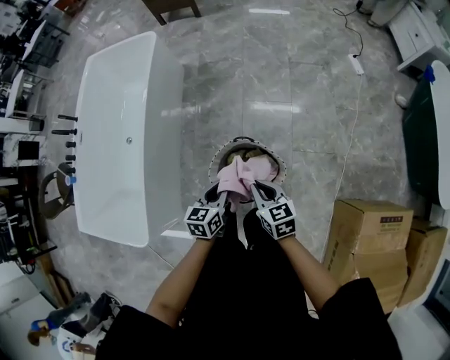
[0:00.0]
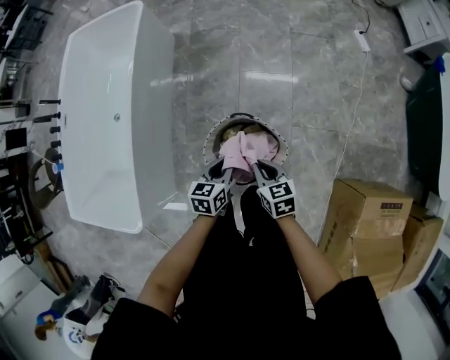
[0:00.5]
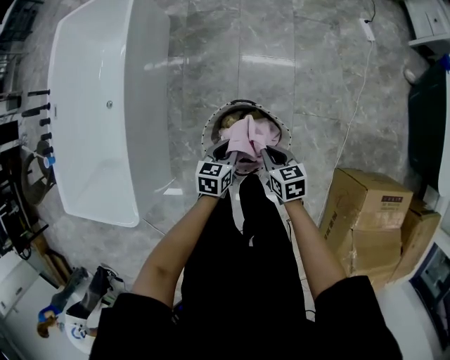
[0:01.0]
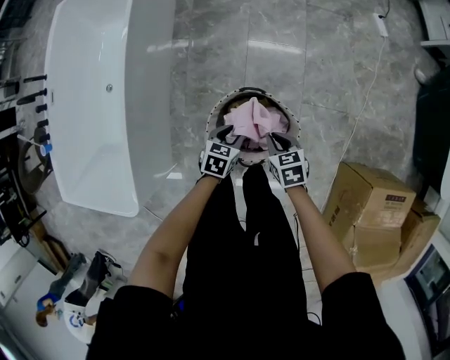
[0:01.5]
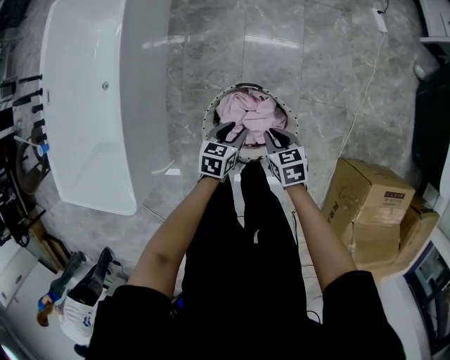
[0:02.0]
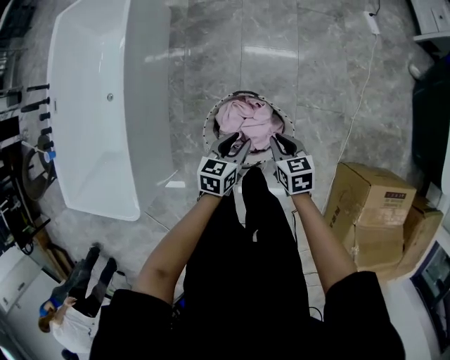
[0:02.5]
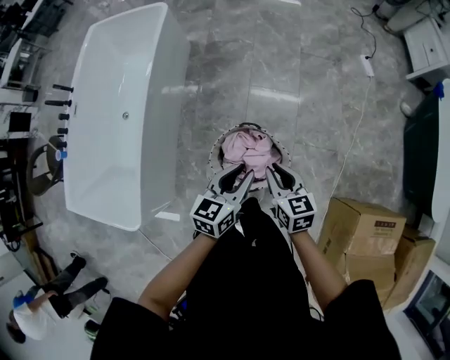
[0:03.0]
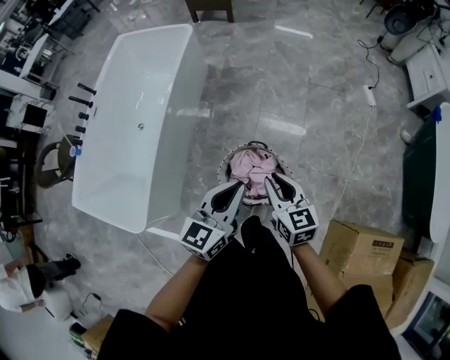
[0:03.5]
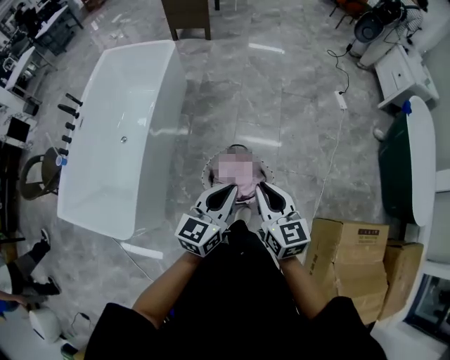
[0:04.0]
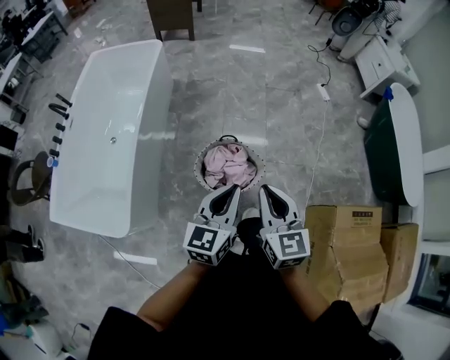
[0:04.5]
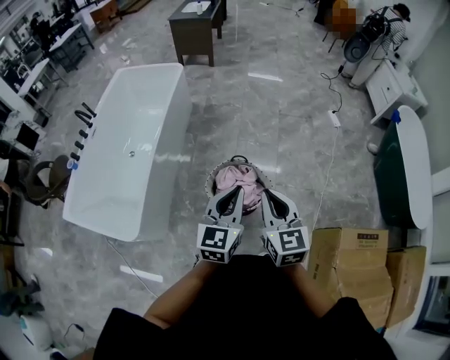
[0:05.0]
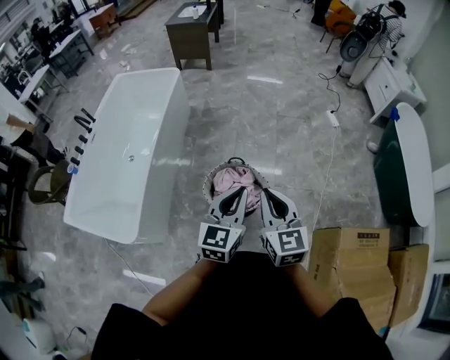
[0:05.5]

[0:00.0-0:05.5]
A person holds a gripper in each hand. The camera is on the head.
0:00.0 to 0:02.0: The grippers both shift downward by some 20 cm. The left gripper opens its fingers.
0:02.0 to 0:03.5: The grippers both shift upward by roughly 35 cm. The left gripper tips its fingers upward by about 30 degrees, and closes its fingers. Meanwhile the right gripper tilts its fingers about 30 degrees upward.
0:03.5 to 0:05.5: The two grippers go roughly 25 cm backward and upward. The right gripper changes its angle by some 20 degrees.

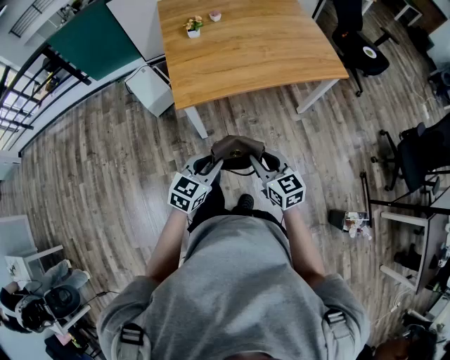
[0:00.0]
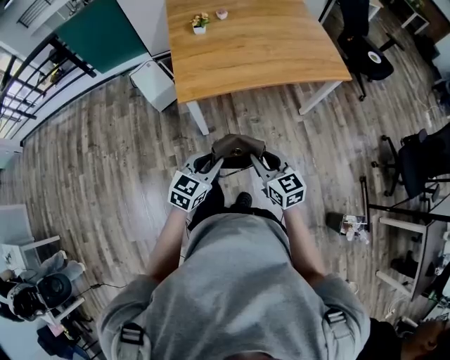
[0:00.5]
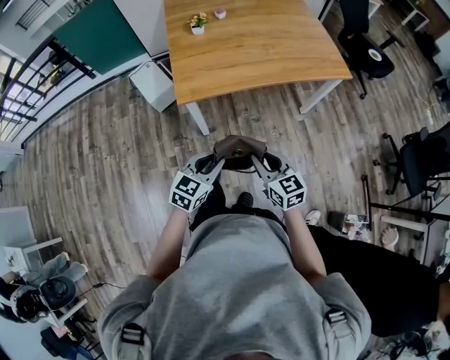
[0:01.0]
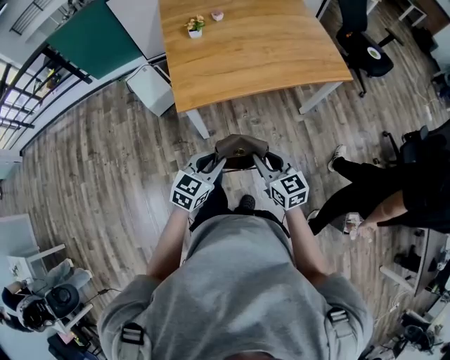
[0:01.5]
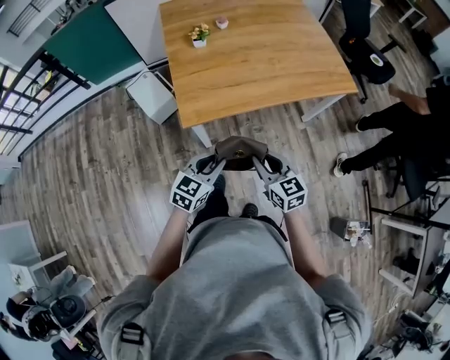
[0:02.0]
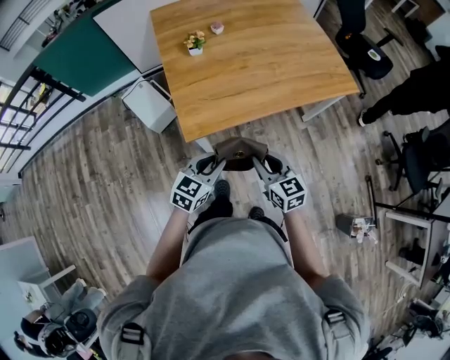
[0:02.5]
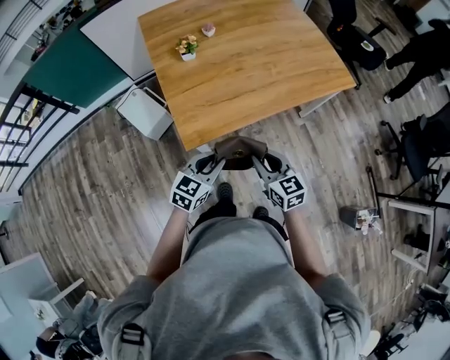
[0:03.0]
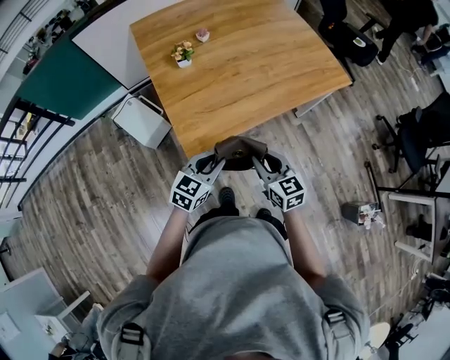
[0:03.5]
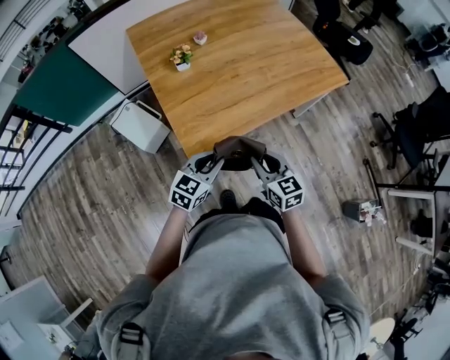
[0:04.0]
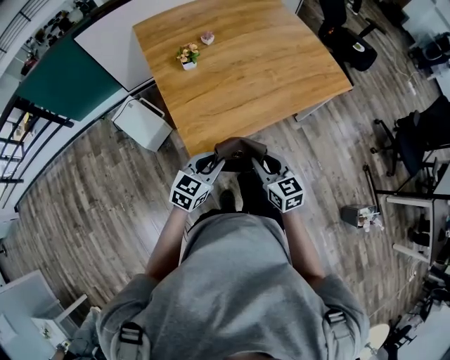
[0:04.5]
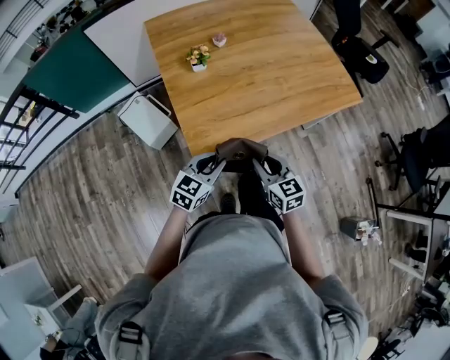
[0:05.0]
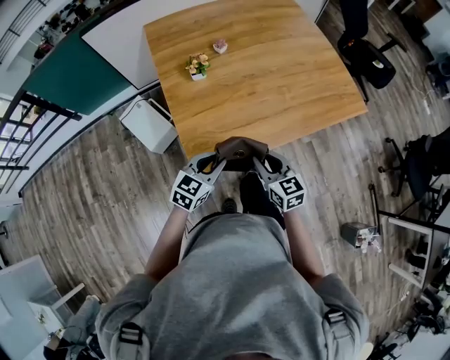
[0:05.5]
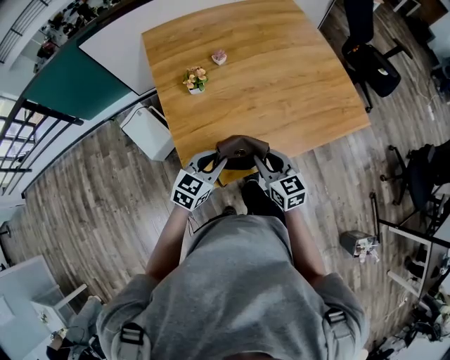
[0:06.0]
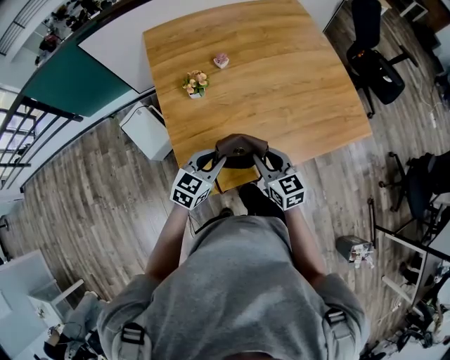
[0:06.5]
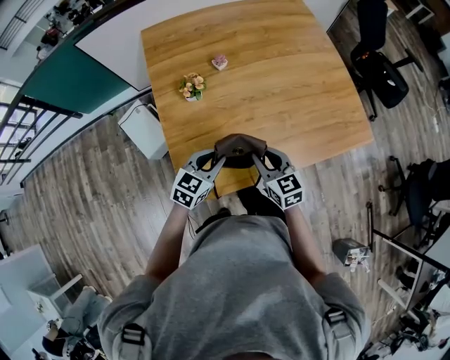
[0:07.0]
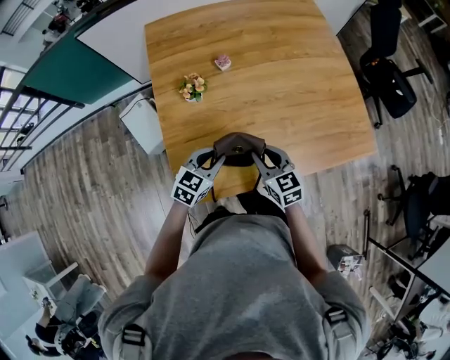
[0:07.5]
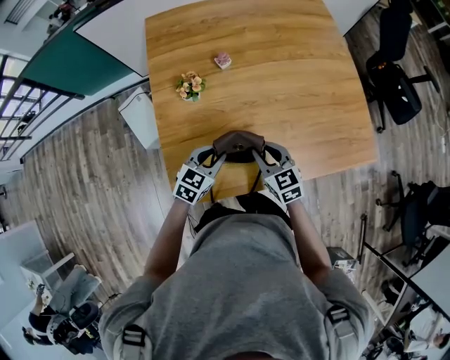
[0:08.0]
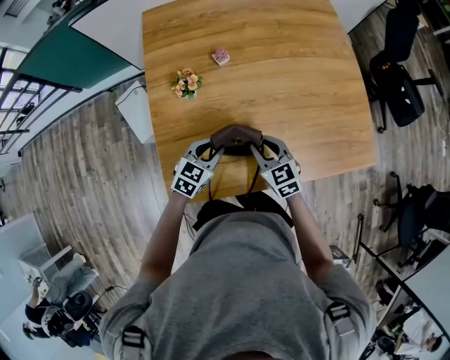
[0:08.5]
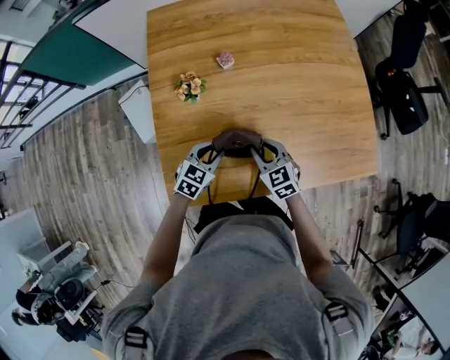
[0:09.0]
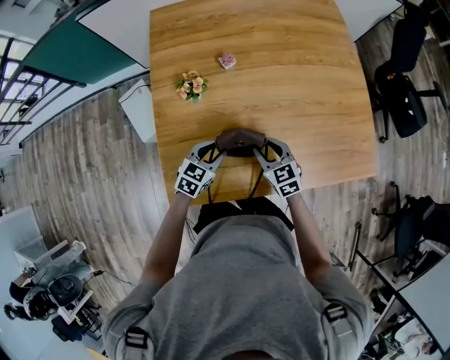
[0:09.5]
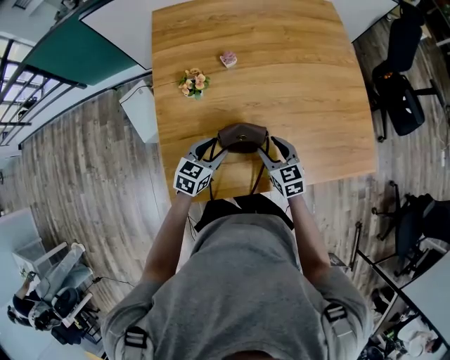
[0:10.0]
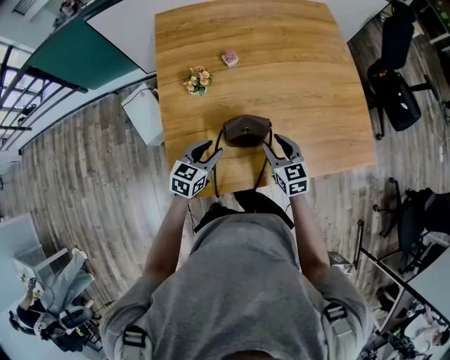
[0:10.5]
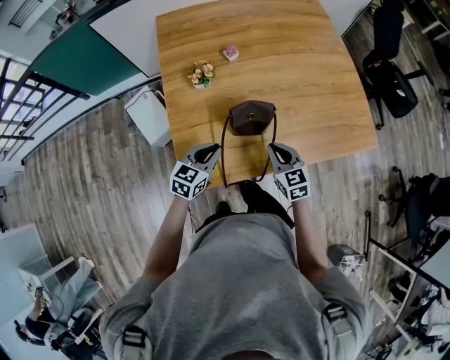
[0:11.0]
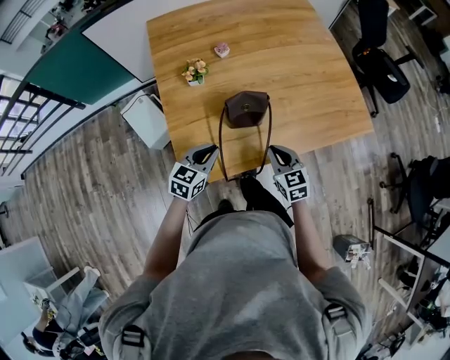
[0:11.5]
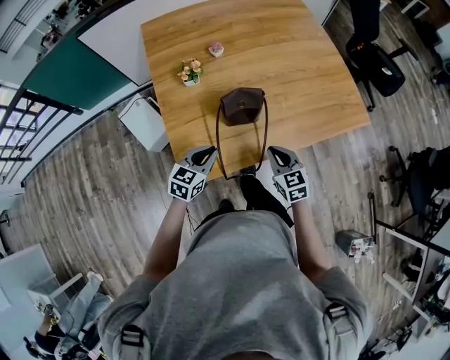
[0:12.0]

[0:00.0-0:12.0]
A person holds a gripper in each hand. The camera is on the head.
0:00.0 to 0:02.0: The two grippers go approximately 10 cm forward.
0:02.0 to 0:04.0: The two grippers go some 15 cm forward and to the left.
0:04.0 to 0:06.0: Both grippers travel together forward, roughly 20 cm.
0:06.0 to 0:08.0: The left gripper shifts about 15 cm forward and downward; the right gripper goes about 15 cm forward.
0:08.0 to 0:10.0: The right gripper goes about 5 cm downward, and opens. Meanwhile the left gripper opens.
0:10.0 to 0:12.0: Both grippers travel together backward, approximately 15 cm. The right gripper closes its fingers. Meanwhile the left gripper closes its fingers.

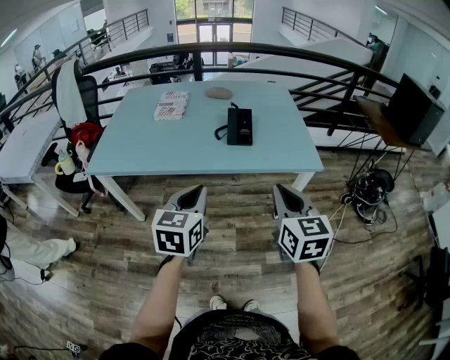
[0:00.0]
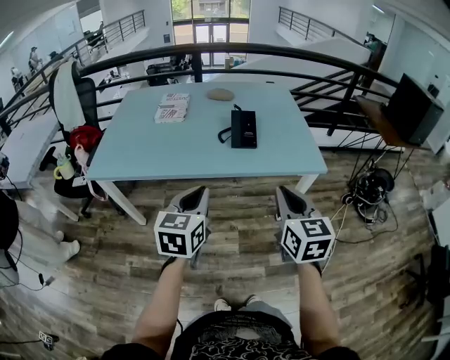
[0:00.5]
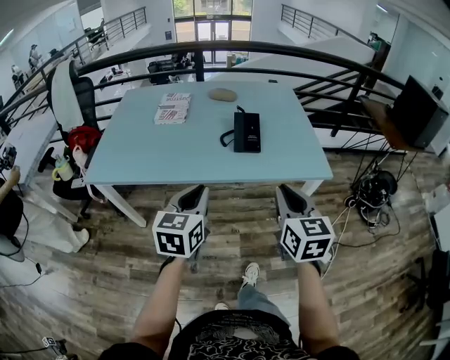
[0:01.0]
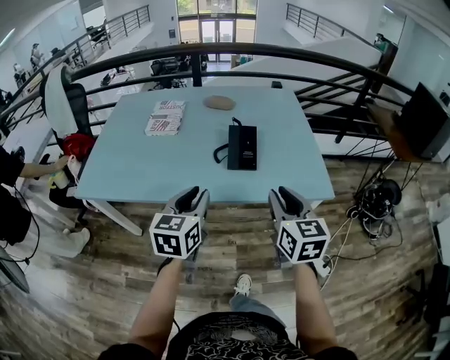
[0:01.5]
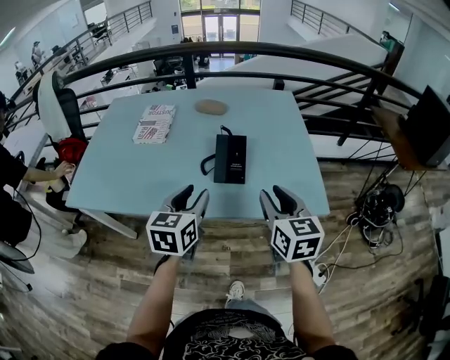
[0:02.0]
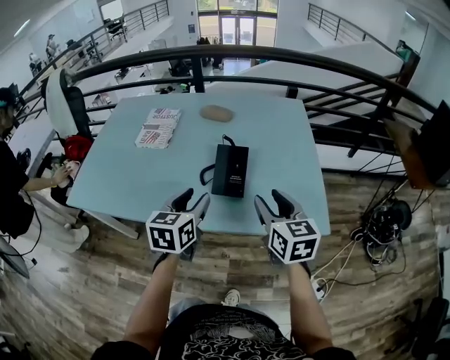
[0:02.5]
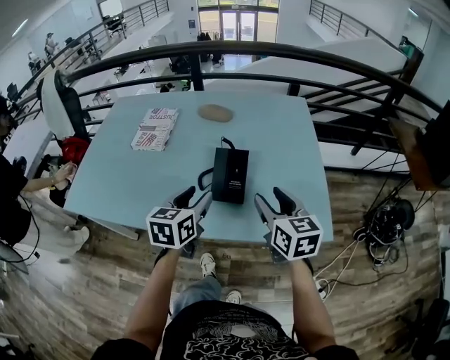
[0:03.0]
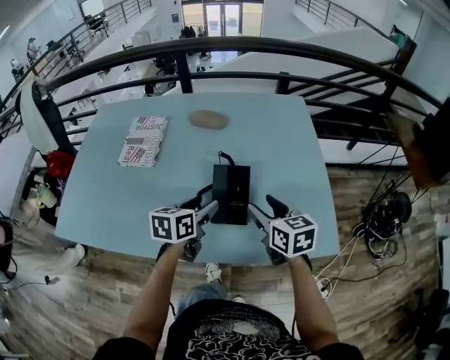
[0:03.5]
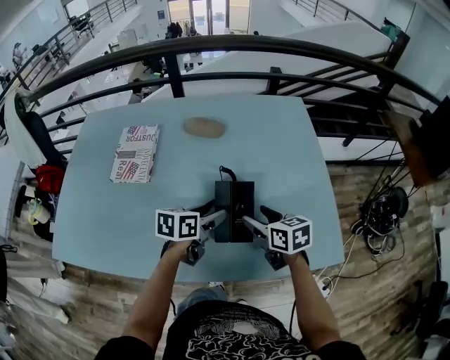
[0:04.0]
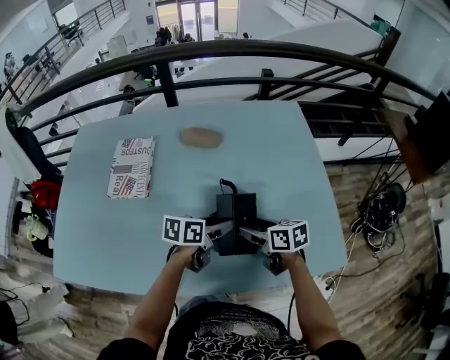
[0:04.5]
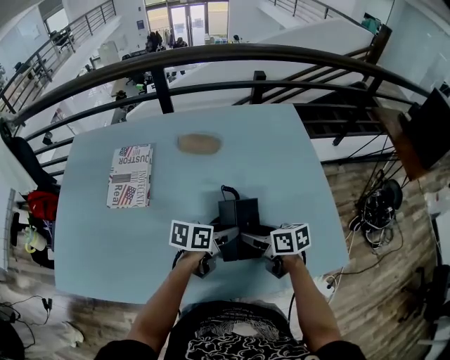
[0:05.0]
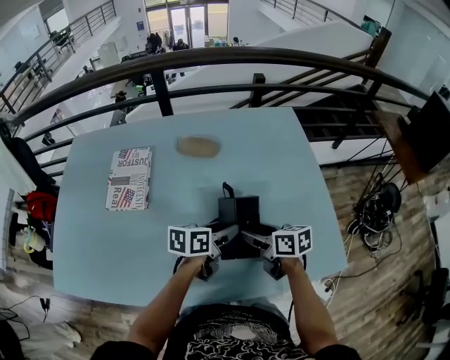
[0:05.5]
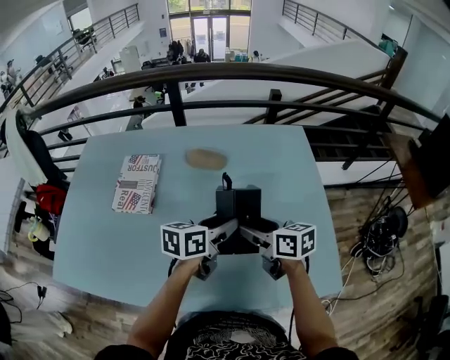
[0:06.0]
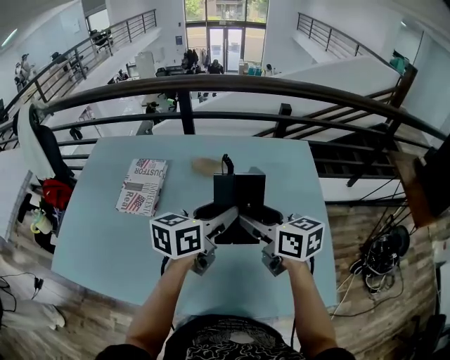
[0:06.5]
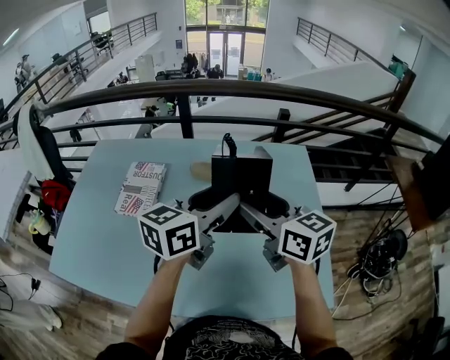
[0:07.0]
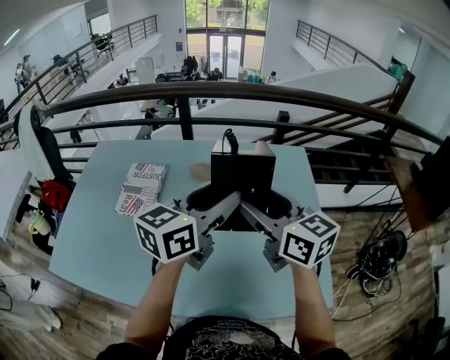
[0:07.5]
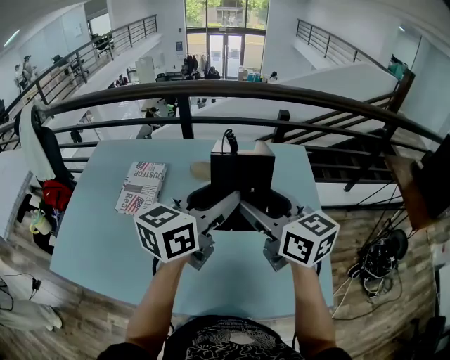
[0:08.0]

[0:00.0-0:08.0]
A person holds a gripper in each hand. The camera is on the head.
0:00.0 to 0:02.0: Both grippers move forward, approximately 25 cm. The right gripper opens up. Meanwhile the left gripper opens its fingers.
0:02.0 to 0:04.0: Both grippers travel together forward and downward, approximately 30 cm. The left gripper swivels roughly 40 degrees, and opens up. The right gripper changes its angle by some 30 degrees, and opens up.
0:04.0 to 0:06.0: The grippers both shift upward and forward by some 10 cm.
0:06.0 to 0:08.0: The two grippers go roughly 20 cm upward. The right gripper turns by roughly 30 degrees. The left gripper rotates some 30 degrees.

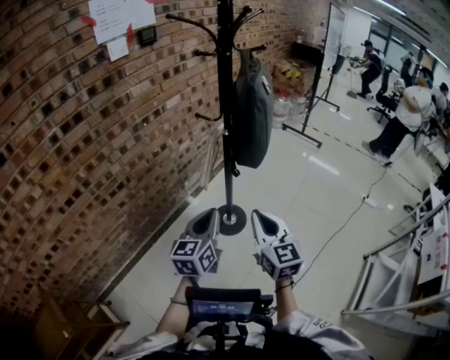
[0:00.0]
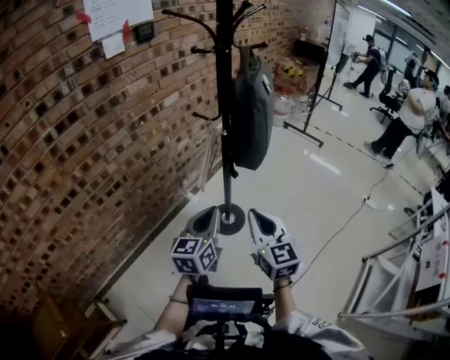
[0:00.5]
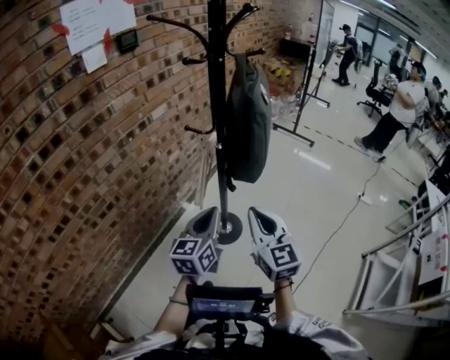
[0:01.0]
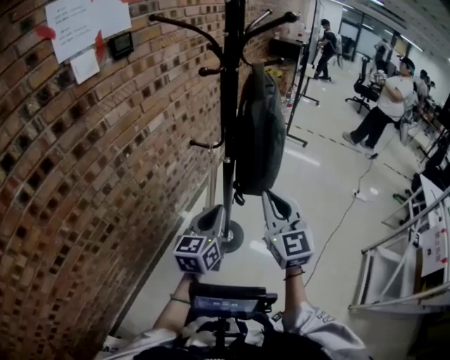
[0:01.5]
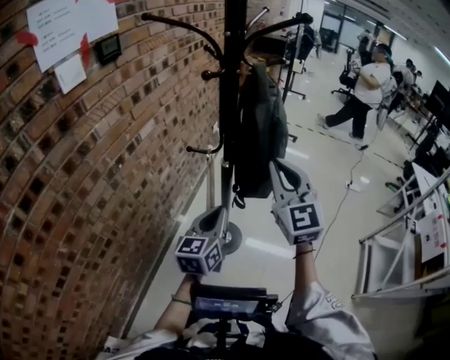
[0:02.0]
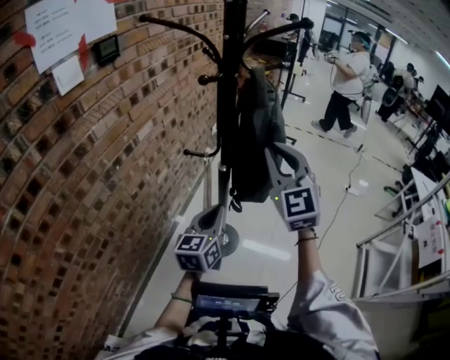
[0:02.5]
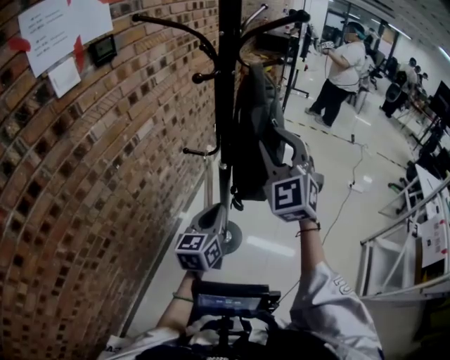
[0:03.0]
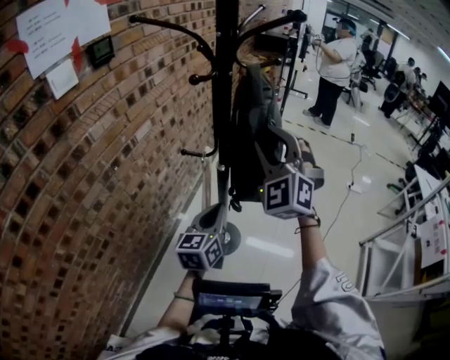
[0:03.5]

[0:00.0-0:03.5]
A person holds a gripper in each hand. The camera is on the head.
0:00.0 to 0:02.0: The left gripper heads forward, covering about 20 cm. The right gripper goes about 30 cm forward and upward, and turns by approximately 30 degrees.
0:02.0 to 0:03.5: The right gripper goes approximately 5 cm forward, swivels some 40 degrees, and opens its fingers.
